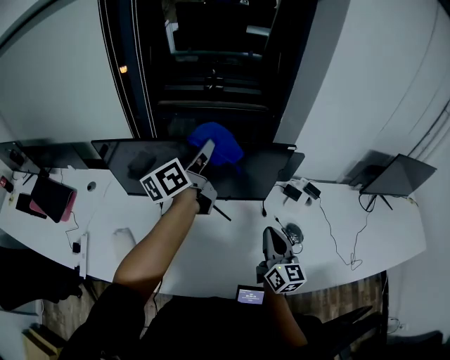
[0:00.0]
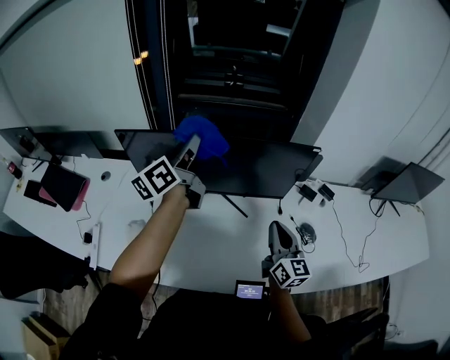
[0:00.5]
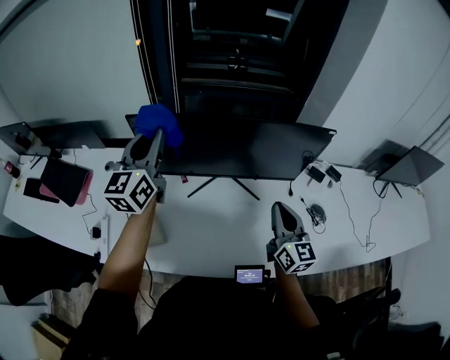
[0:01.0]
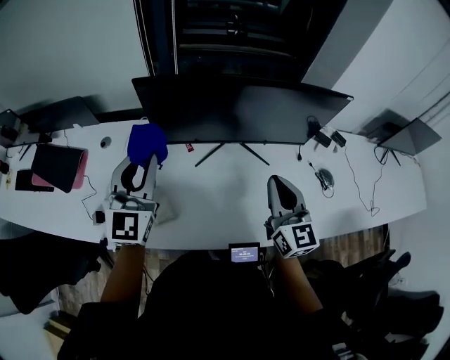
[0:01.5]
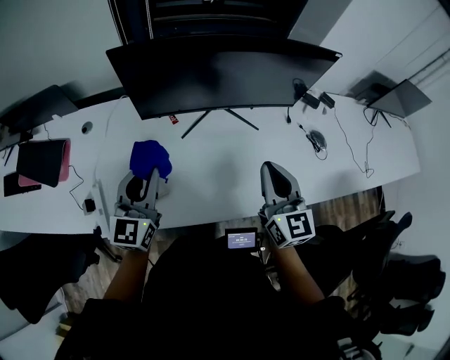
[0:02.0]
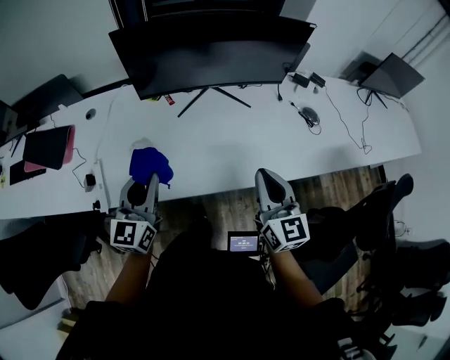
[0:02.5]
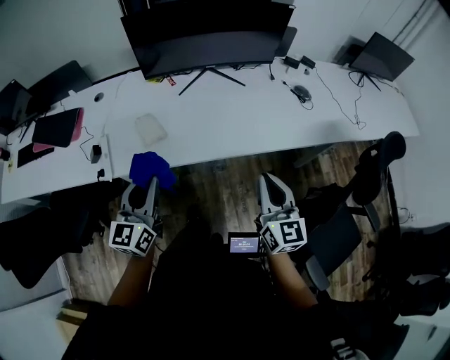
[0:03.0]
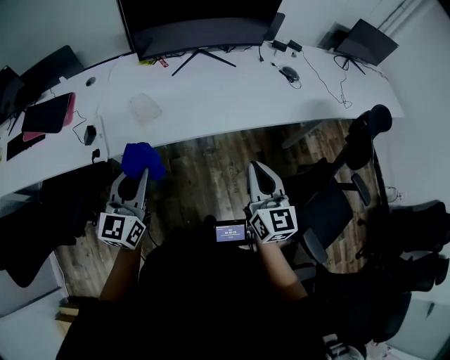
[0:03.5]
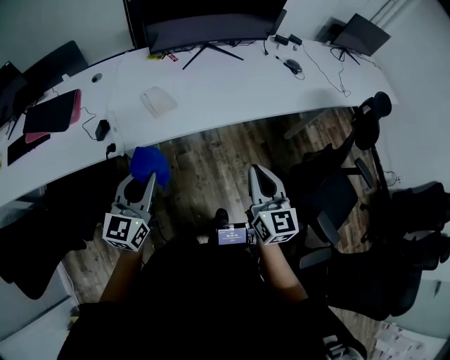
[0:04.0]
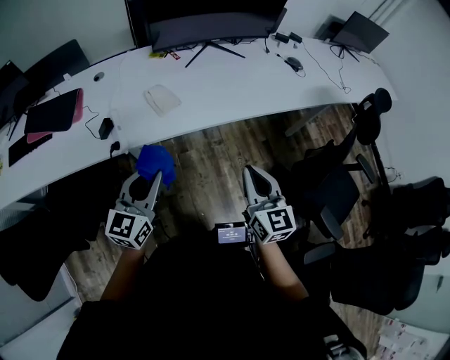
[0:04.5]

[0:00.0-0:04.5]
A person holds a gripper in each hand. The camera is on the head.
0:00.0 to 0:02.0: The left gripper travels to the left, backward and downward by roughly 40 cm, and rolls clockwise, seen from behind, by about 50 degrees. The right gripper goes some 25 cm to the left and backward.
0:02.0 to 0:04.5: Both grippers travel together backward, roughly 40 cm.

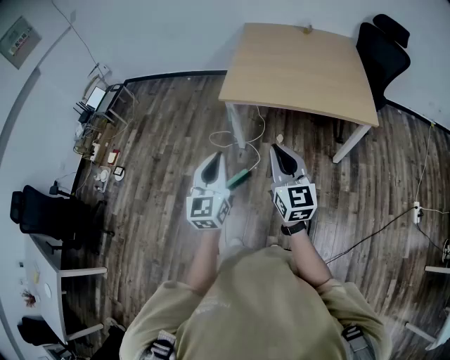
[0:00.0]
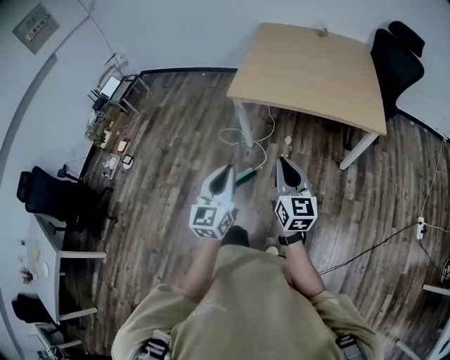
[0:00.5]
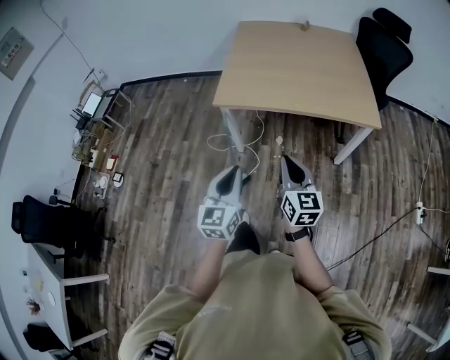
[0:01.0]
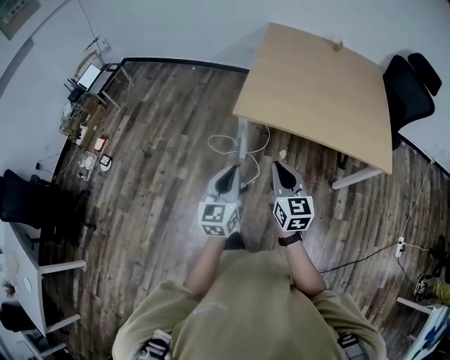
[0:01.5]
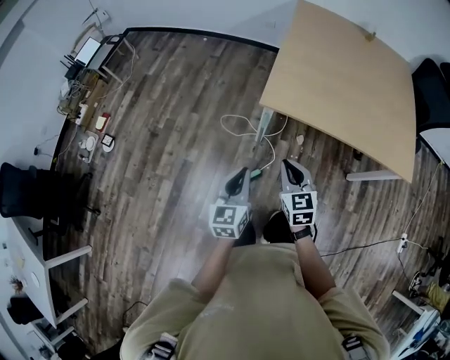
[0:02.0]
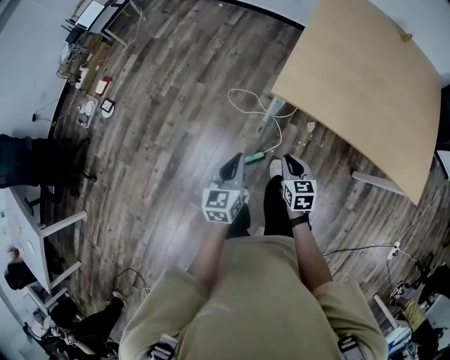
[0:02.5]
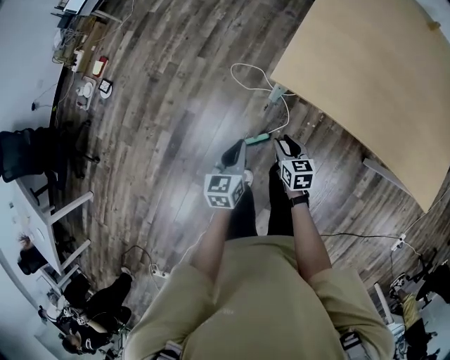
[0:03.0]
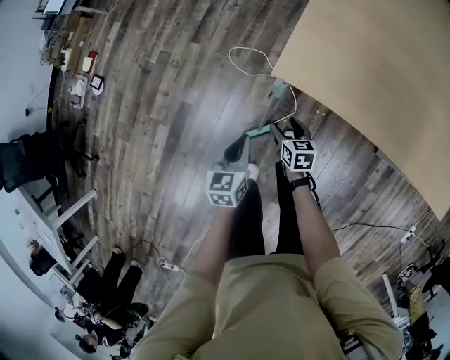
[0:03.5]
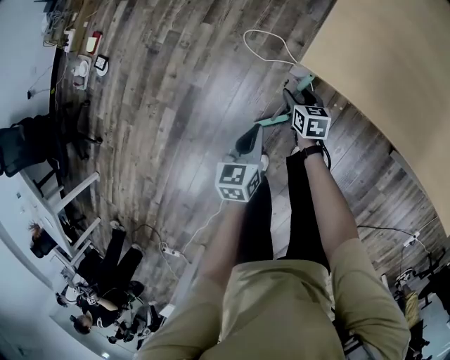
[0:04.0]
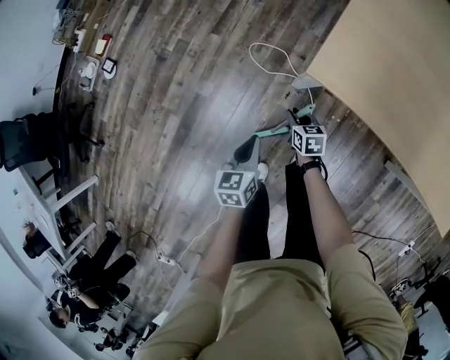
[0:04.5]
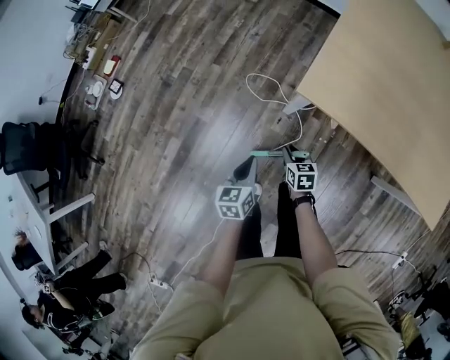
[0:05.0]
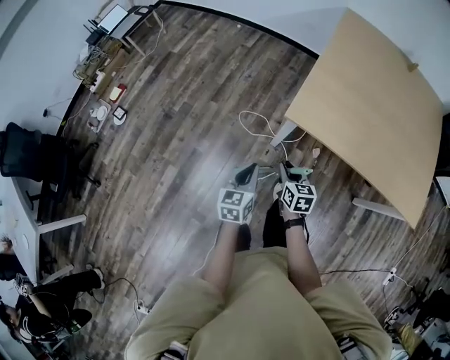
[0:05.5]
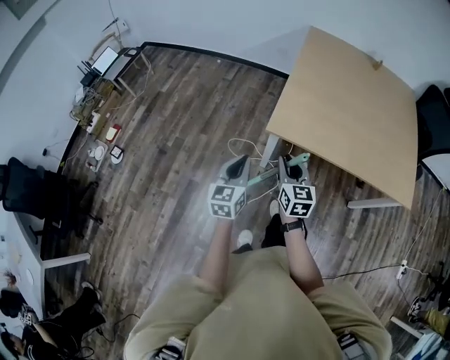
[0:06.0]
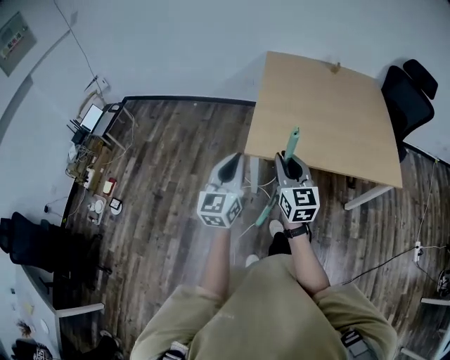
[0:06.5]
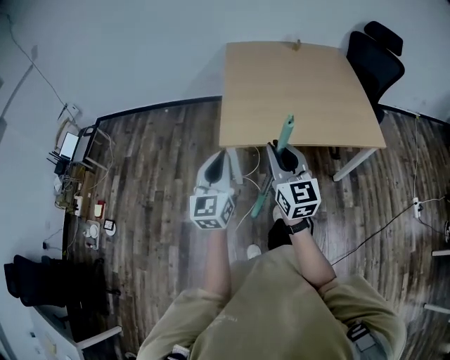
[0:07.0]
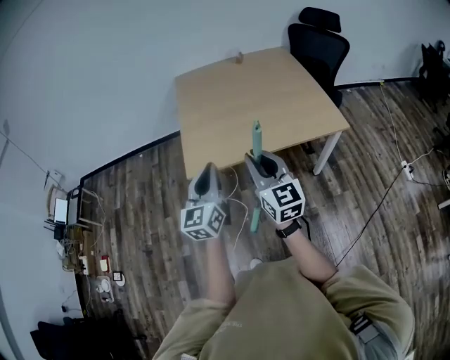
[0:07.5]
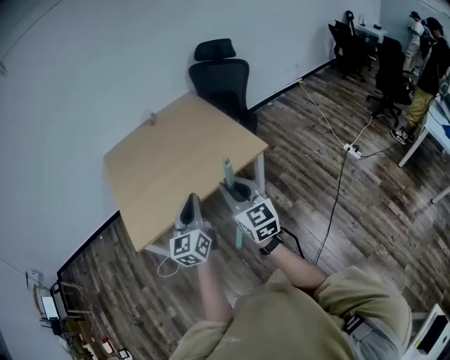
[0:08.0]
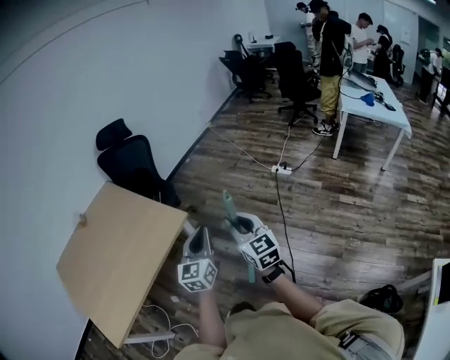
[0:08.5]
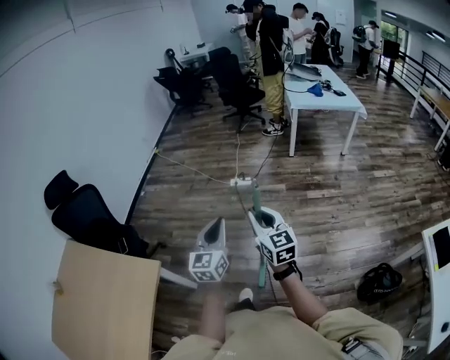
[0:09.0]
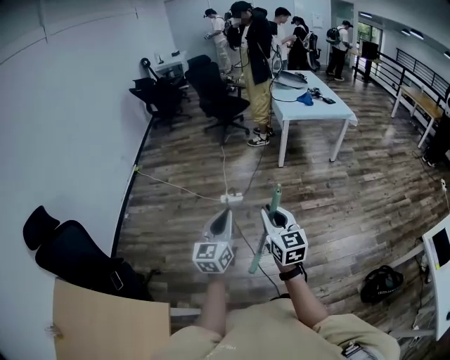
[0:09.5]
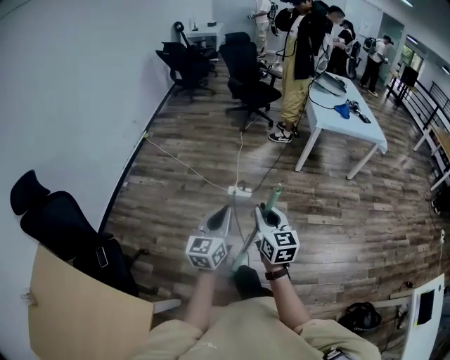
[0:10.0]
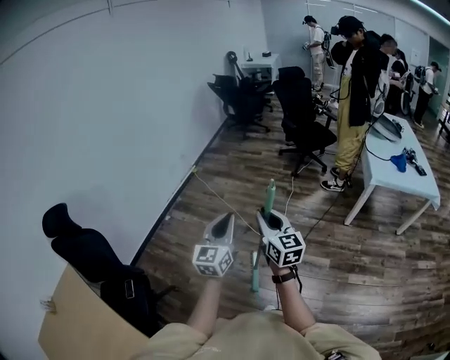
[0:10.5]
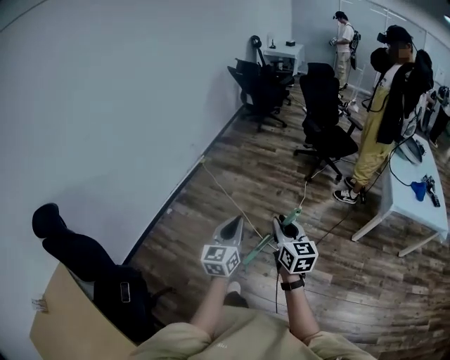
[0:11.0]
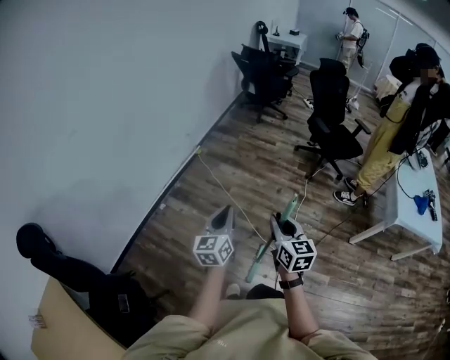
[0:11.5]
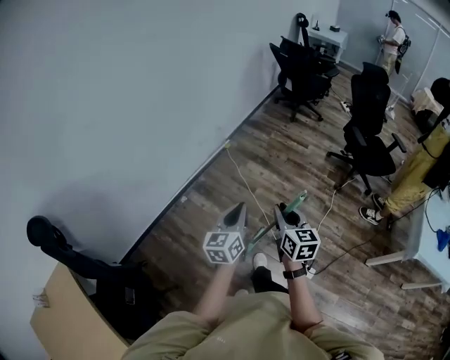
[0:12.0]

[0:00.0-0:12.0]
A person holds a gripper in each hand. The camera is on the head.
0:00.0 to 0:02.0: The grippers both shift forward, downward and to the left by approximately 40 cm. The left gripper rotates approximately 20 degrees; the right gripper changes its angle by about 30 degrees.
0:02.0 to 0:04.0: Both grippers travel together downward and forward, roughly 50 cm. The left gripper changes its angle by about 30 degrees. The right gripper turns by about 40 degrees, and opens up.
0:04.0 to 0:06.0: The grippers both shift upward by some 40 cm. The right gripper changes its angle by approximately 40 degrees, and closes up; the left gripper turns by about 30 degrees.
0:06.0 to 0:08.0: Both grippers are carried about 50 cm. The left gripper turns by approximately 40 degrees, while the right gripper turns by about 40 degrees.
0:08.0 to 0:10.0: The two grippers travel together, approximately 1 m. The left gripper swivels roughly 70 degrees. Meanwhile the right gripper rotates roughly 70 degrees.
0:10.0 to 0:12.0: Both grippers are carried approximately 80 cm. The right gripper turns by about 30 degrees; the left gripper changes its angle by approximately 30 degrees.

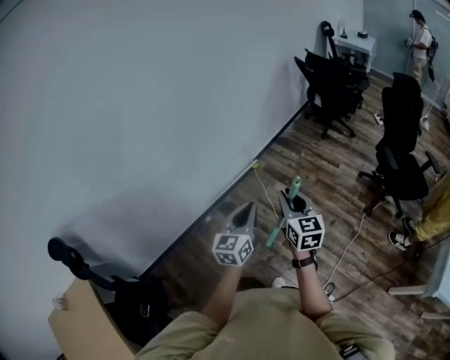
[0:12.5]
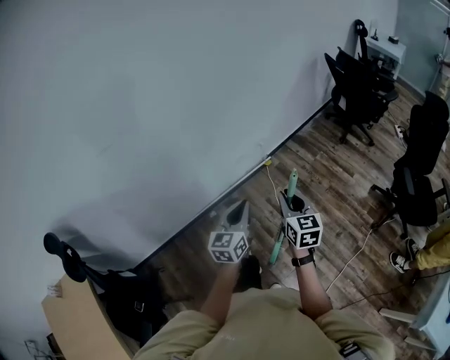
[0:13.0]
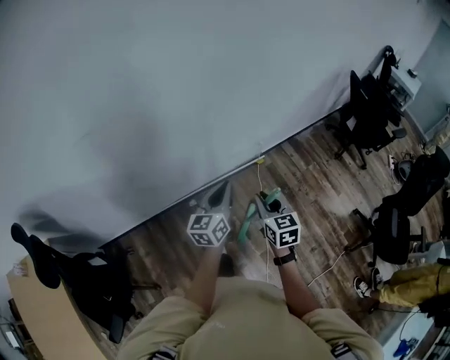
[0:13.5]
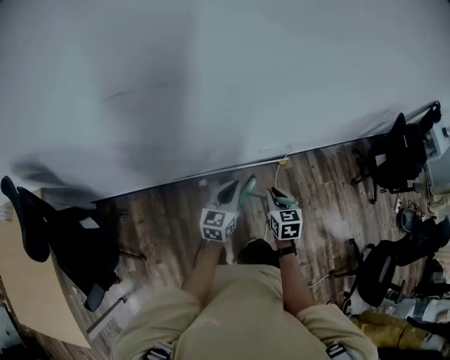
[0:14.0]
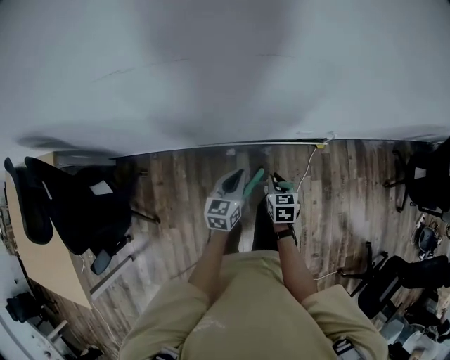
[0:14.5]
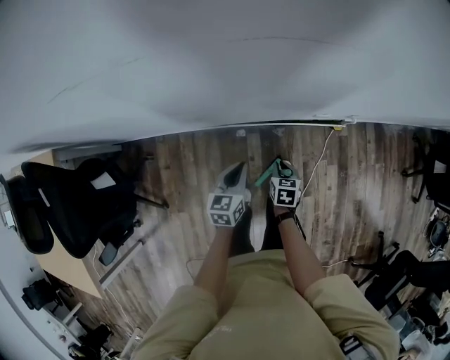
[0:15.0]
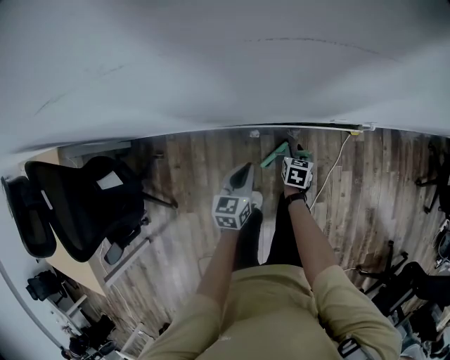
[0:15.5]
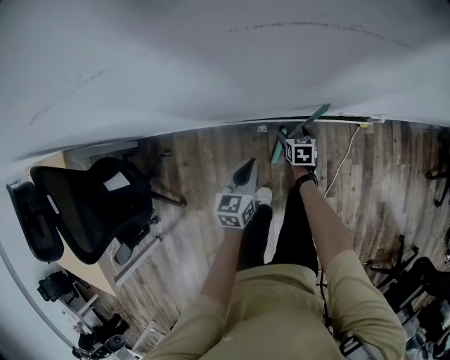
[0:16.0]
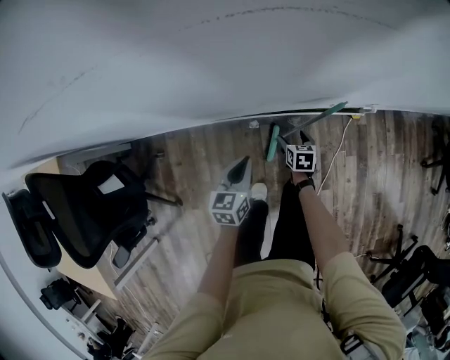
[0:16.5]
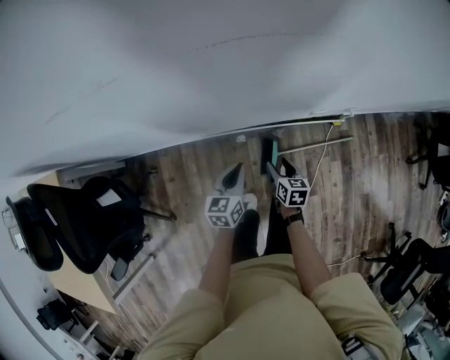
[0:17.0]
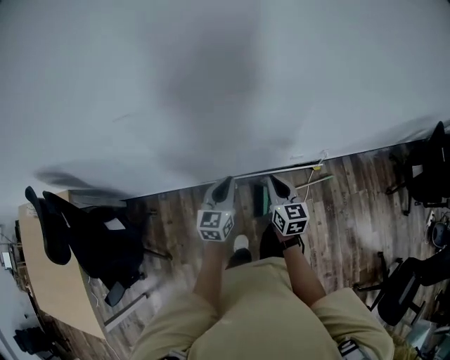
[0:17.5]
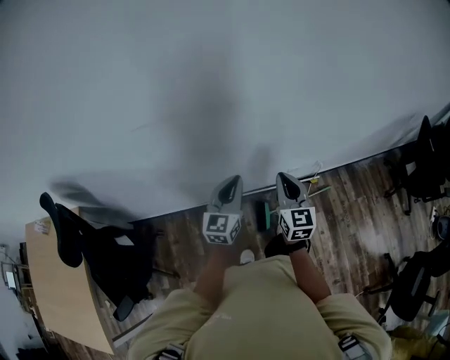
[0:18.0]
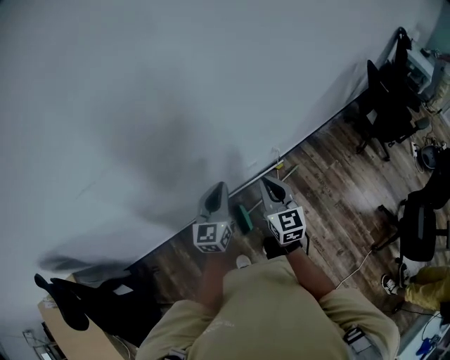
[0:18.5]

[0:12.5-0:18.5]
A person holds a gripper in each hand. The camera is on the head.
0:12.5 to 0:14.5: Both grippers are carried some 60 cm. The left gripper turns by approximately 50 degrees; the right gripper points its fingers approximately 40 degrees further downward.
0:14.5 to 0:16.5: The right gripper travels downward and forward by about 25 cm, and opens up, while the left gripper shifts some 10 cm downward.
0:16.5 to 0:18.5: The left gripper is displaced upward and to the right by approximately 40 cm, and turns by some 40 degrees, while the right gripper travels upward by some 50 cm, tilts its fingers roughly 40 degrees upward, and closes.

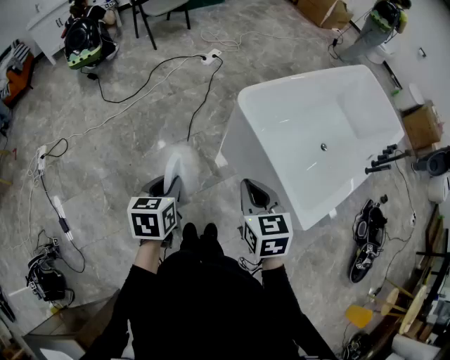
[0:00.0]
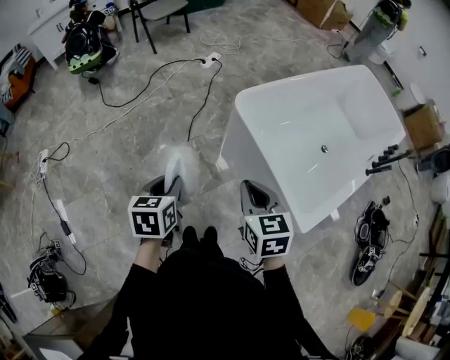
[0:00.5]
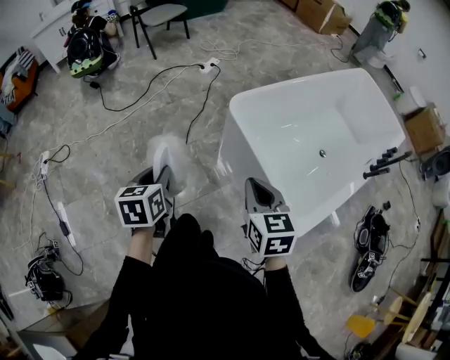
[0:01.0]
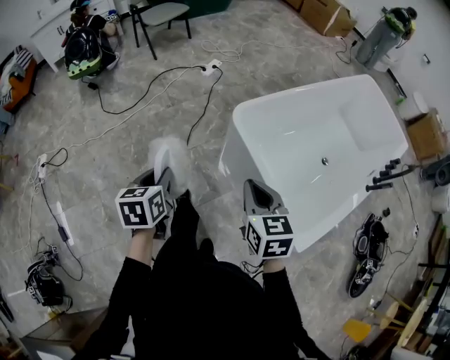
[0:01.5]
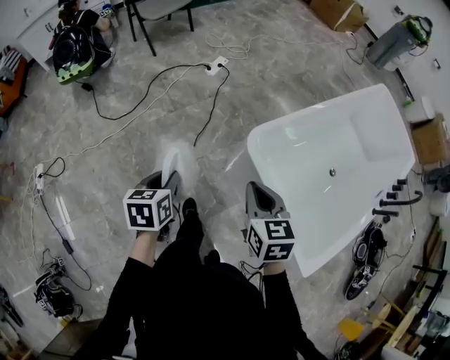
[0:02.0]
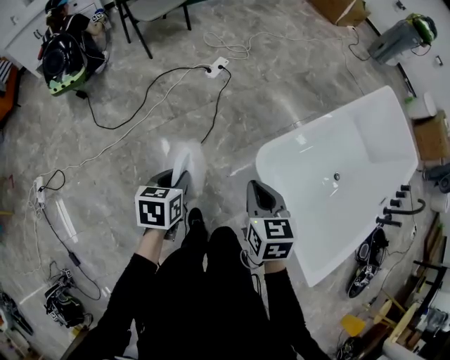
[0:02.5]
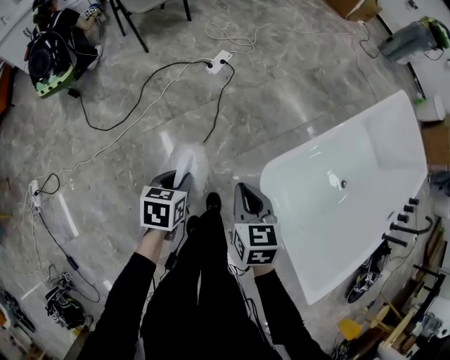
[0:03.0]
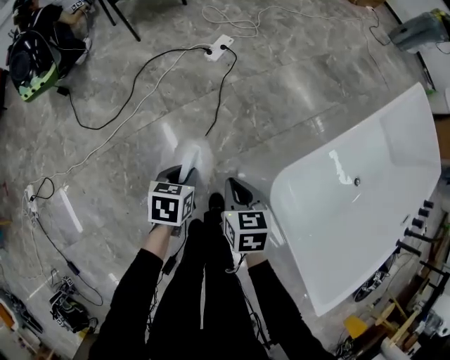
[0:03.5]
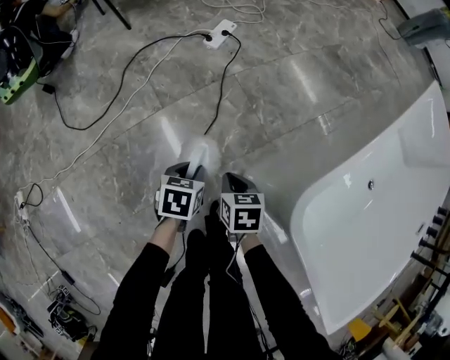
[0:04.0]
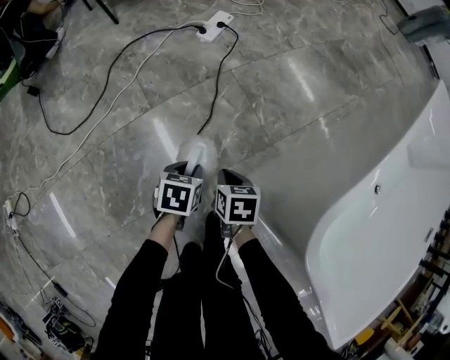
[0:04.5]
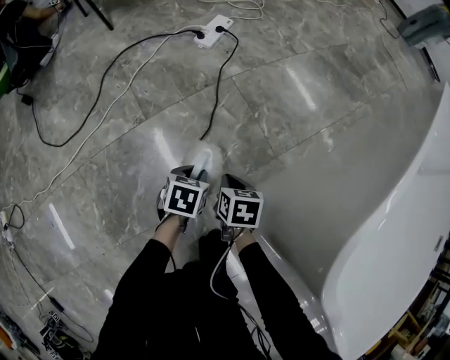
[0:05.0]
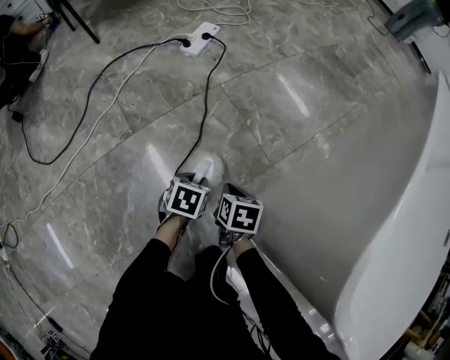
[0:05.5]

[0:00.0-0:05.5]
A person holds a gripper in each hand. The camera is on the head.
0:00.0 to 0:02.0: Both grippers travel together forward, about 25 cm.
0:02.0 to 0:03.5: The right gripper heads downward and forward, covering about 35 cm, while the left gripper travels forward and downward by about 30 cm.
0:03.5 to 0:05.5: The grippers both shift downward by some 40 cm. The right gripper changes its angle by roughly 20 degrees.
